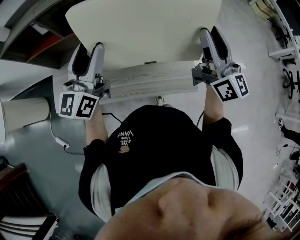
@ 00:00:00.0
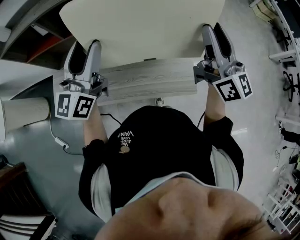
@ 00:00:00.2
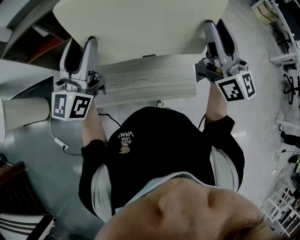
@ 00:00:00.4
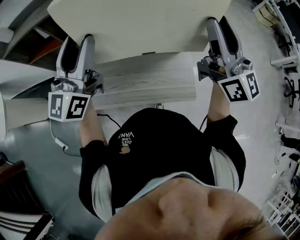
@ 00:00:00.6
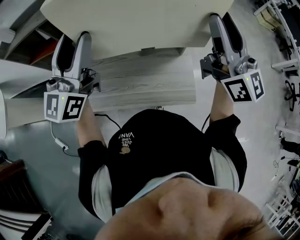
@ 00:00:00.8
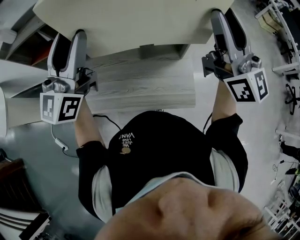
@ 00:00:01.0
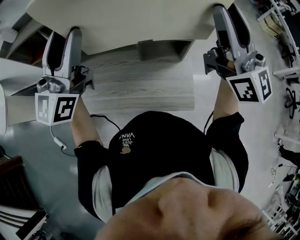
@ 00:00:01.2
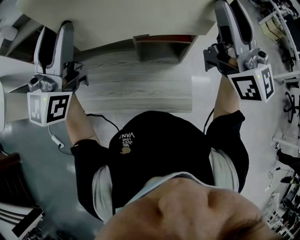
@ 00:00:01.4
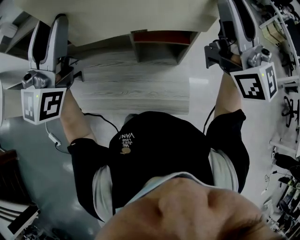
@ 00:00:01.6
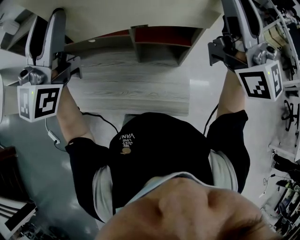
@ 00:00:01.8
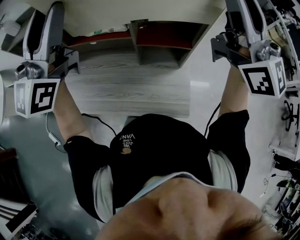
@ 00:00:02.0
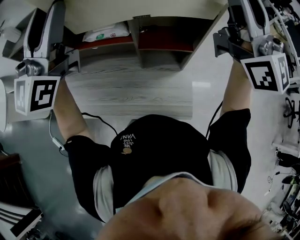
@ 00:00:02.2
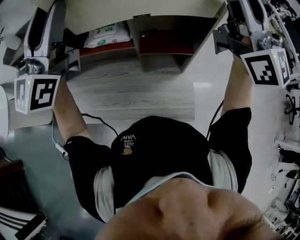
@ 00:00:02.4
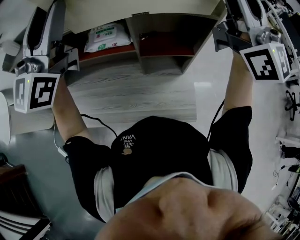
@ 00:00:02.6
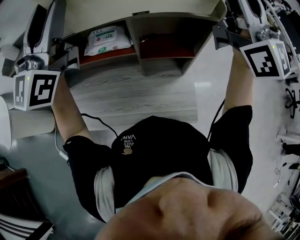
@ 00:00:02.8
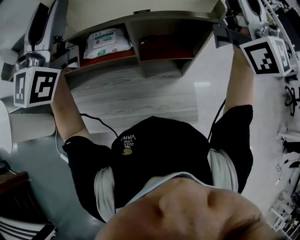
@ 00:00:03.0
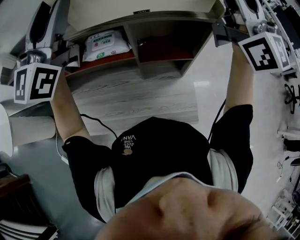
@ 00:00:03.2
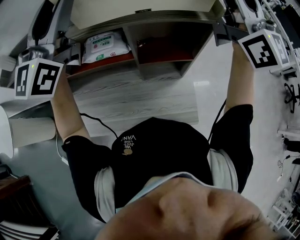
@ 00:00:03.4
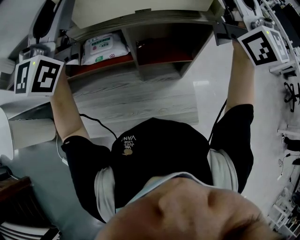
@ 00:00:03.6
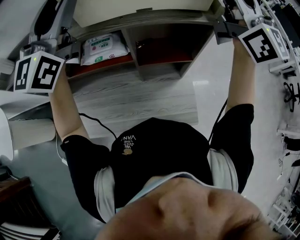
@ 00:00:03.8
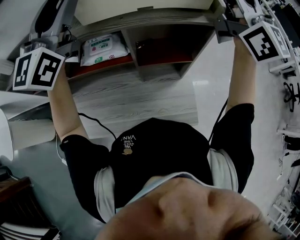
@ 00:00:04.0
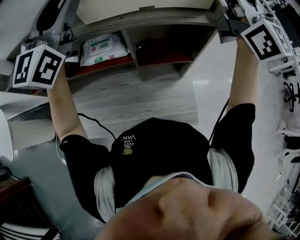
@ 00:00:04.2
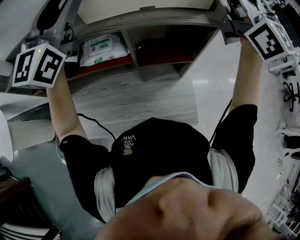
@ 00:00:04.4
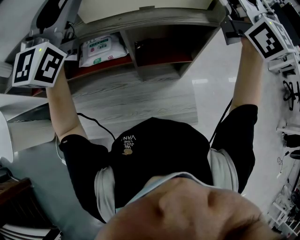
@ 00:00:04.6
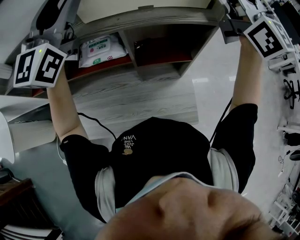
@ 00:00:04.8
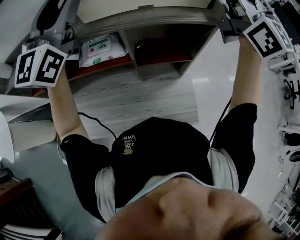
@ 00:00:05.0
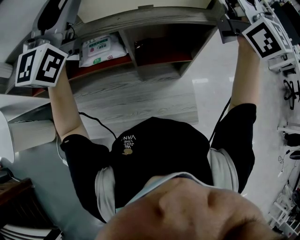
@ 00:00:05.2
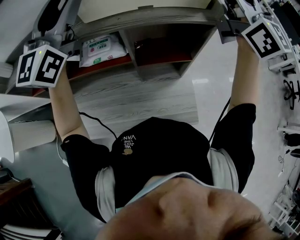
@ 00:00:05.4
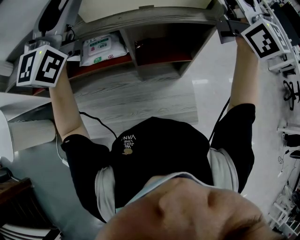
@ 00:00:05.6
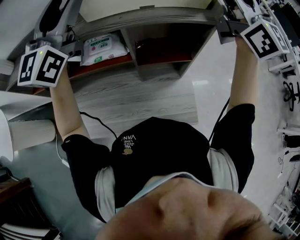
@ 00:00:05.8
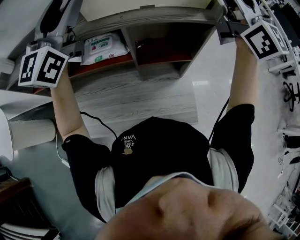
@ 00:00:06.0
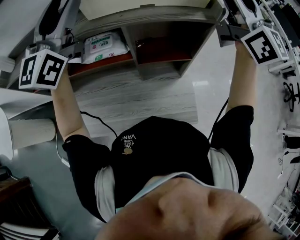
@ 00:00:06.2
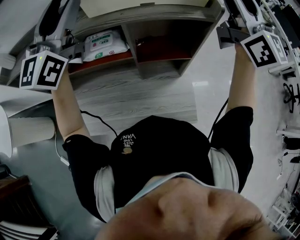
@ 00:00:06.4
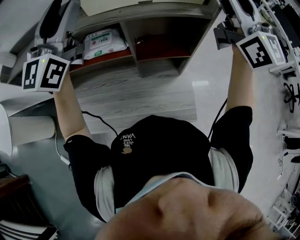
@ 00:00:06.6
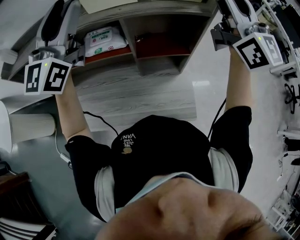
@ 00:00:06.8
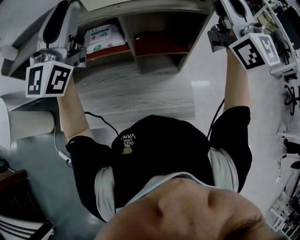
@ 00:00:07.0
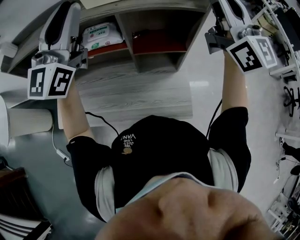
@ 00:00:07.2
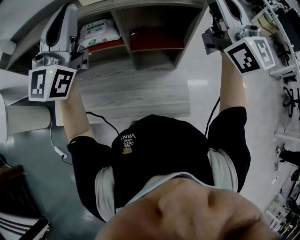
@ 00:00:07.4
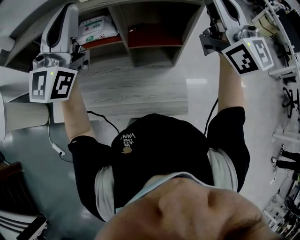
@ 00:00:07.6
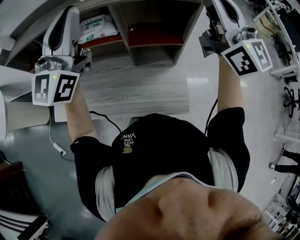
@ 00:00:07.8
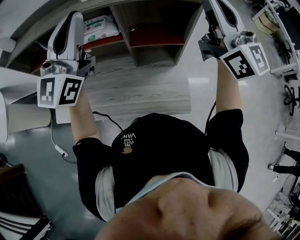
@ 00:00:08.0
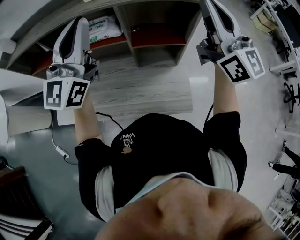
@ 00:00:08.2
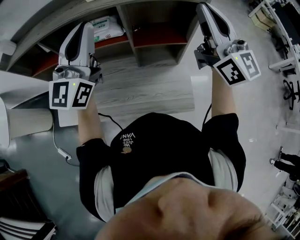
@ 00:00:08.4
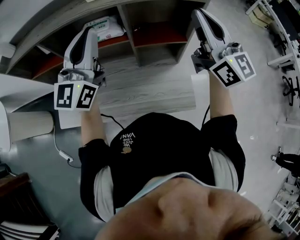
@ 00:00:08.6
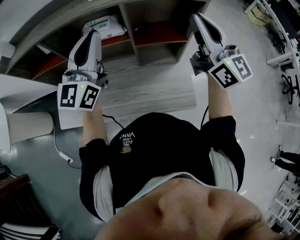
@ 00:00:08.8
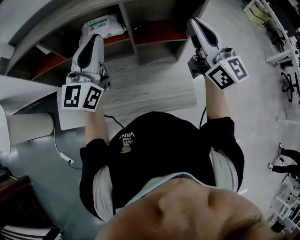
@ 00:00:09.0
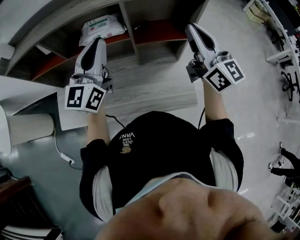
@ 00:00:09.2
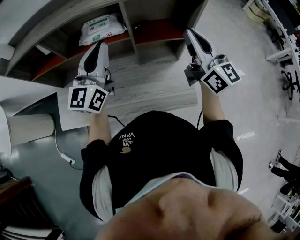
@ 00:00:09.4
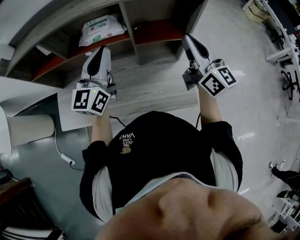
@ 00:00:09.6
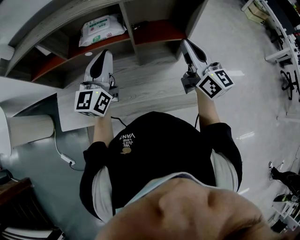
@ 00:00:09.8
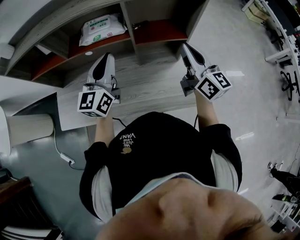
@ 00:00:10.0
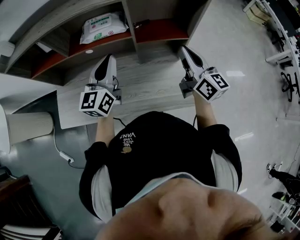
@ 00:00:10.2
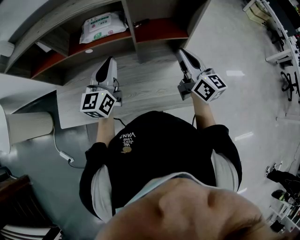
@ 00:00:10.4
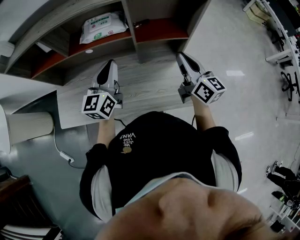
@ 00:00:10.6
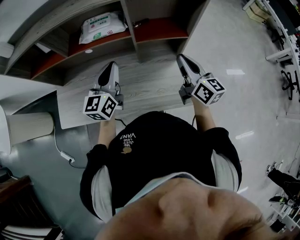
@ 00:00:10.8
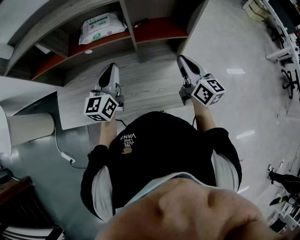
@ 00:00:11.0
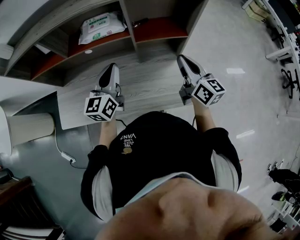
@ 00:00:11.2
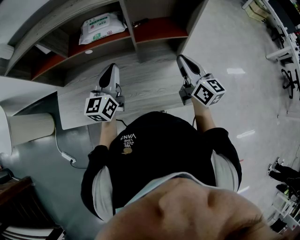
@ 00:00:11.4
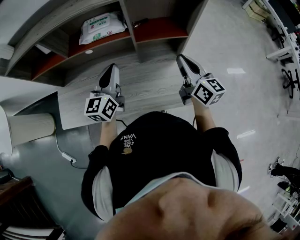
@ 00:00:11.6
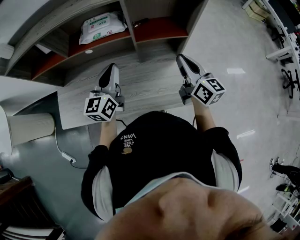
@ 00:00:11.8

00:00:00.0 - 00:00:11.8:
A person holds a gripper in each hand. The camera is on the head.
00:00:00.0 - 00:00:01.4: The right gripper is displaced upward and forward by approximately 15 cm, and turns by roughly 20 degrees, while the left gripper shifts roughly 15 cm upward, and changes its angle by about 20 degrees.
00:00:01.4 - 00:00:03.0: The left gripper goes some 10 cm forward and upward, while the right gripper moves upward and forward, approximately 10 cm.
00:00:03.0 - 00:00:04.4: The grippers both shift forward by roughly 5 cm.
00:00:04.4 - 00:00:06.0: The grippers make only small movements.
00:00:06.0 - 00:00:07.4: Both grippers move backward, roughly 10 cm. The left gripper closes its fingers. Meanwhile the right gripper closes.
00:00:07.4 - 00:00:08.8: Both grippers move downward, about 10 cm.
00:00:08.8 - 00:00:10.4: The grippers both shift downward by about 15 cm. The left gripper turns by some 20 degrees. The right gripper turns by approximately 20 degrees.
00:00:10.4 - 00:00:11.8: There are only small adjustments of the grippers.

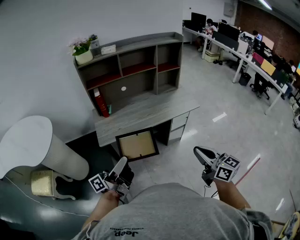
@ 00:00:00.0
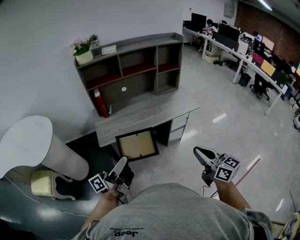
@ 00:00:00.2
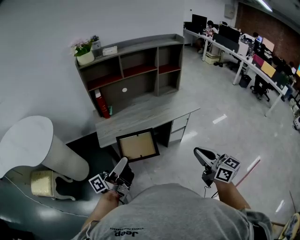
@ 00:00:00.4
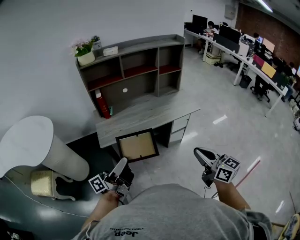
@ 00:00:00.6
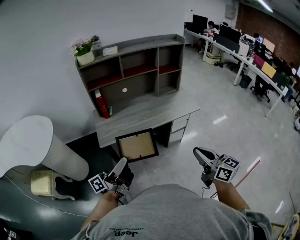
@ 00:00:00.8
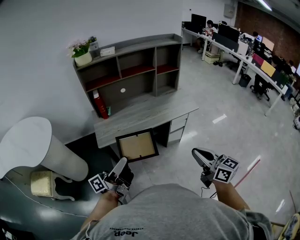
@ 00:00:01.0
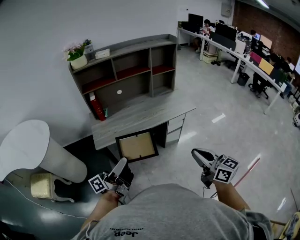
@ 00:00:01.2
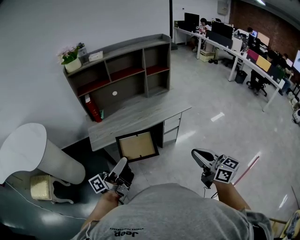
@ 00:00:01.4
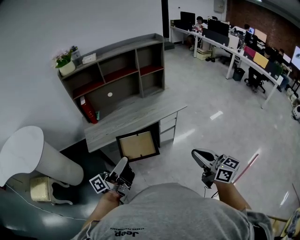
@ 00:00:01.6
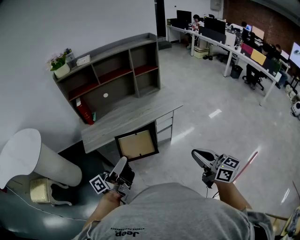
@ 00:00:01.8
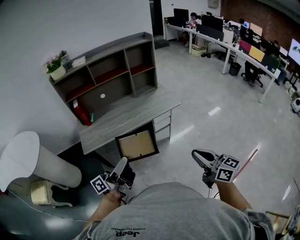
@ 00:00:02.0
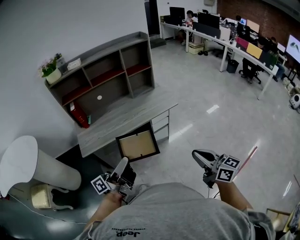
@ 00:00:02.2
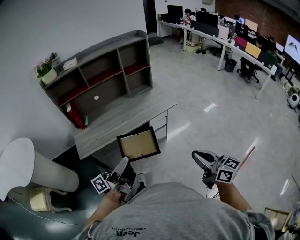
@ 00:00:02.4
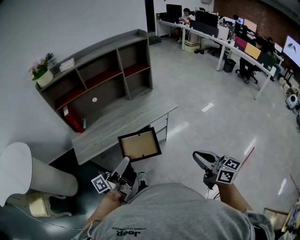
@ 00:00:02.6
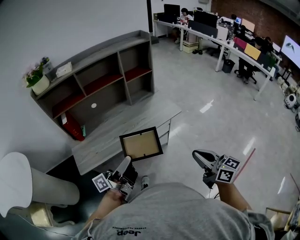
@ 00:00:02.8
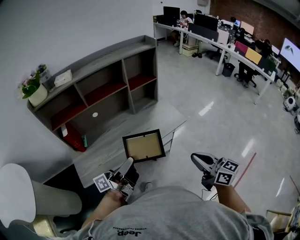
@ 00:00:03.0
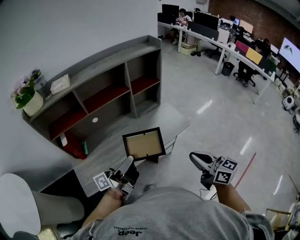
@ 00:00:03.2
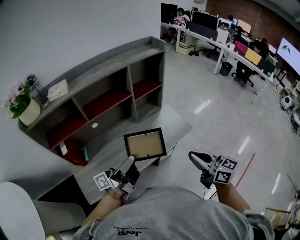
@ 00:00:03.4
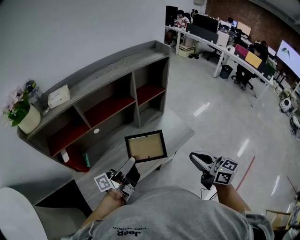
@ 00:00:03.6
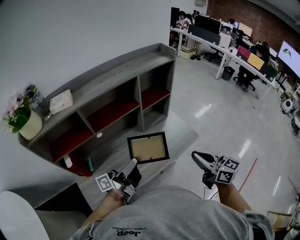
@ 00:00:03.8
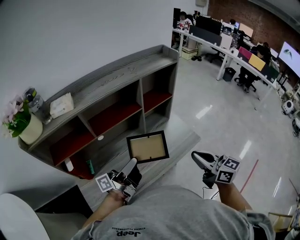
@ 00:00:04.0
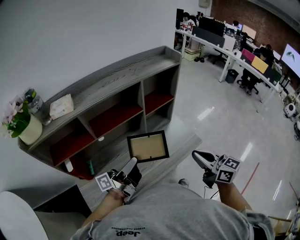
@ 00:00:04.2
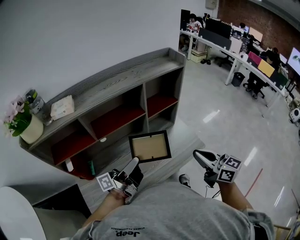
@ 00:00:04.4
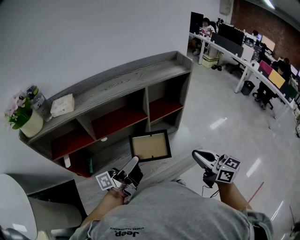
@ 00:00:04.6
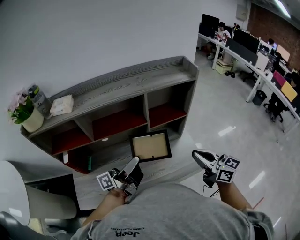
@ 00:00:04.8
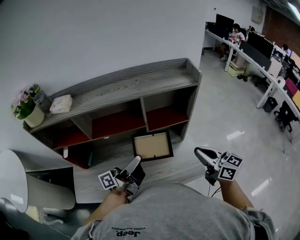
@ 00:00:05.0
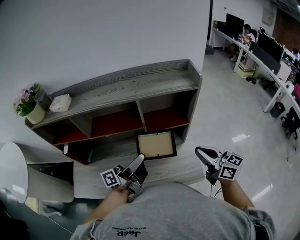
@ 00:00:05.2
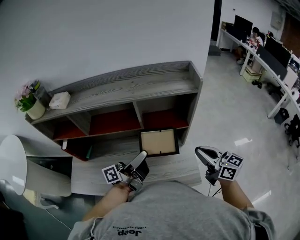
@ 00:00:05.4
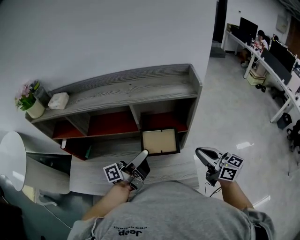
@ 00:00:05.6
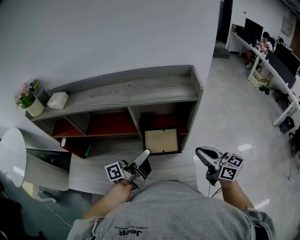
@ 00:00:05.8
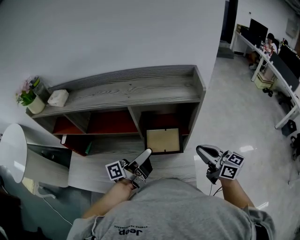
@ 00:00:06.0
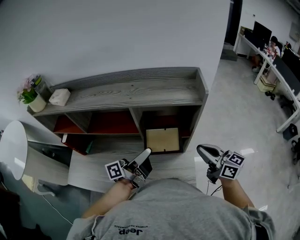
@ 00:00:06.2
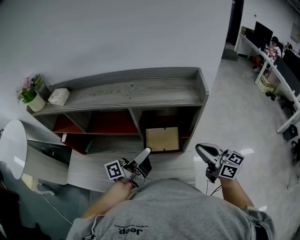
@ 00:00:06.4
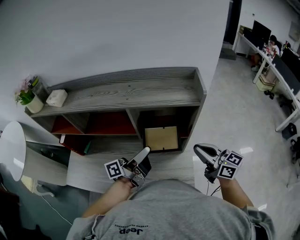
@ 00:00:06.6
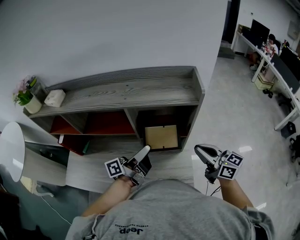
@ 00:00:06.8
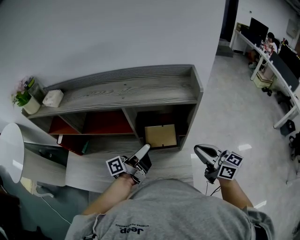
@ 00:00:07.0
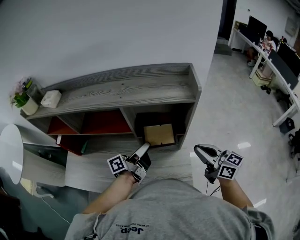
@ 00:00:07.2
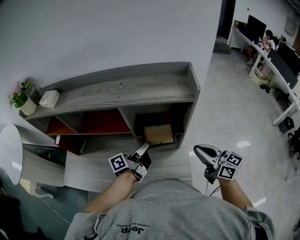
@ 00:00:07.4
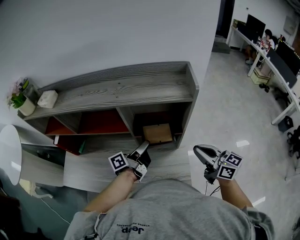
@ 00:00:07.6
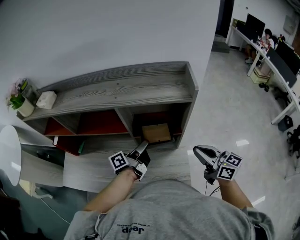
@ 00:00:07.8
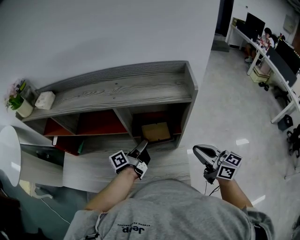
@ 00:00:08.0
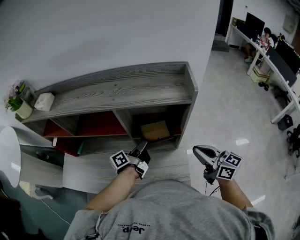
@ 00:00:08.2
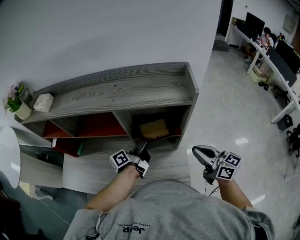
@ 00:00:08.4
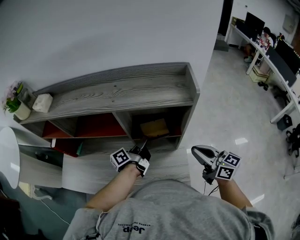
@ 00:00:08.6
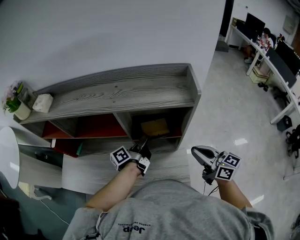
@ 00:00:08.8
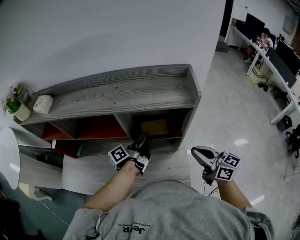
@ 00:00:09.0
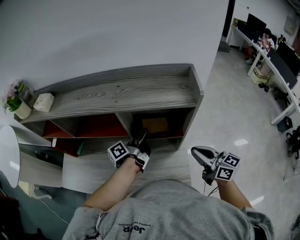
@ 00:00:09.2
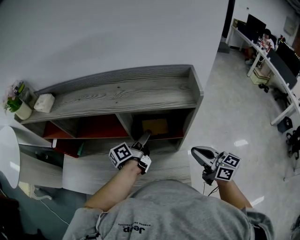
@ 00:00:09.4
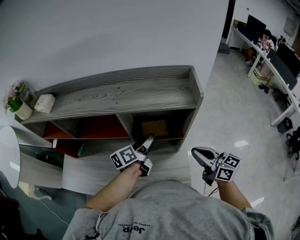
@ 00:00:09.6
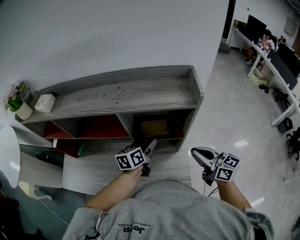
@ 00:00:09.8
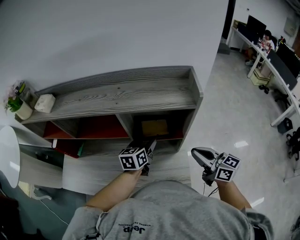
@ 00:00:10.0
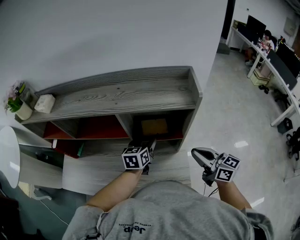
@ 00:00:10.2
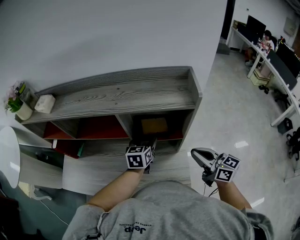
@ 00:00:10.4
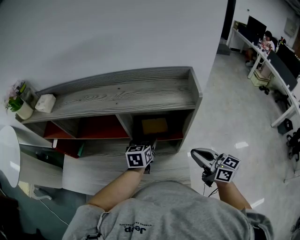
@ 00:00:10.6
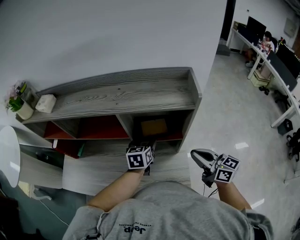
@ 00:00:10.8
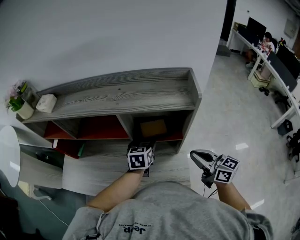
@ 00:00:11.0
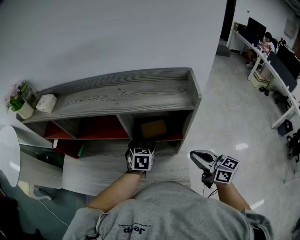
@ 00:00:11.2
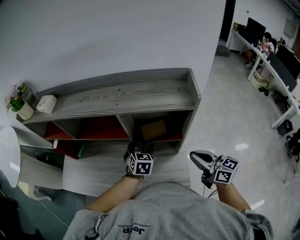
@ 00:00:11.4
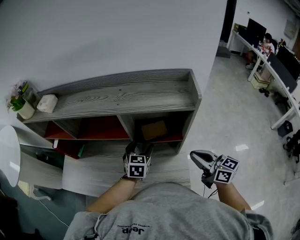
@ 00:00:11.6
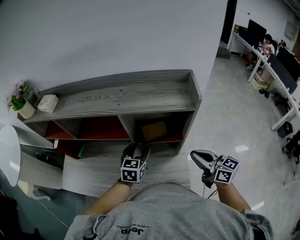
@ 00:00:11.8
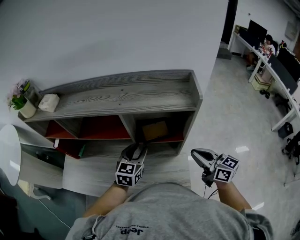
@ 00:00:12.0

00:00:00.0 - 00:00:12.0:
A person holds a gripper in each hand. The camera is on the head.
00:00:00.0 - 00:00:01.6: Both grippers travel together to the right, some 10 cm.
00:00:01.6 - 00:00:03.0: The two grippers go roughly 20 cm forward.
00:00:03.0 - 00:00:04.4: The right gripper goes about 25 cm forward and to the left; the left gripper shifts some 25 cm forward.
00:00:04.4 - 00:00:06.0: The right gripper shifts by roughly 30 cm, and rotates approximately 30 degrees, while the left gripper changes place by about 25 cm, and rotates roughly 30 degrees.
00:00:06.0 - 00:00:07.6: The left gripper is displaced downward and forward by approximately 10 cm.
00:00:07.6 - 00:00:09.0: The left gripper travels forward by roughly 5 cm.
00:00:09.0 - 00:00:10.4: The left gripper rolls clockwise, seen from behind, by about 70 degrees, and opens its fingers.
00:00:10.4 - 00:00:12.0: The left gripper shifts by roughly 10 cm, and closes its fingers.
